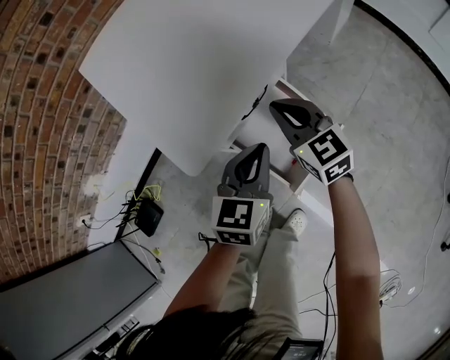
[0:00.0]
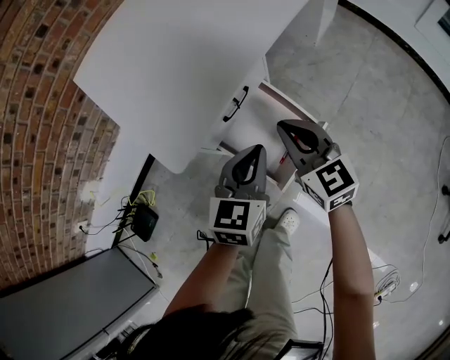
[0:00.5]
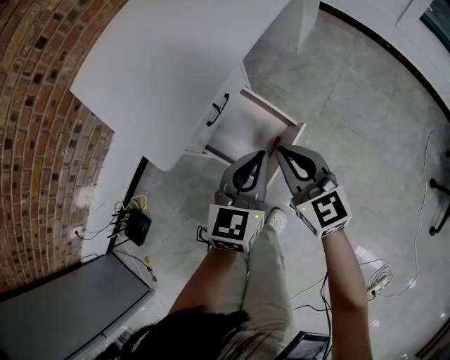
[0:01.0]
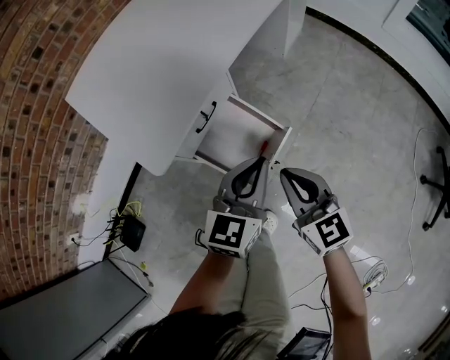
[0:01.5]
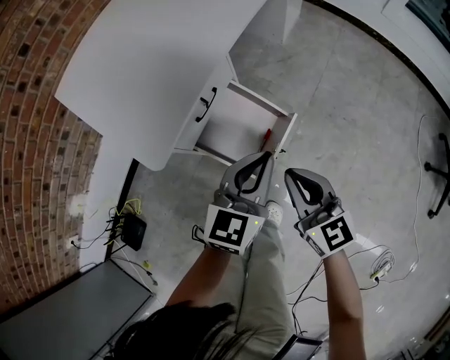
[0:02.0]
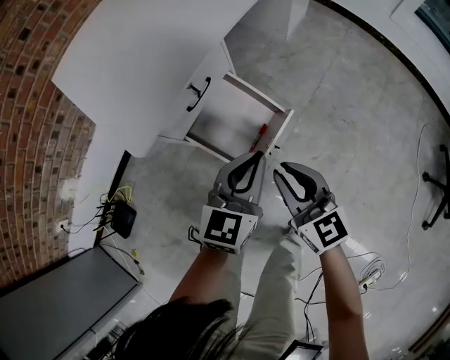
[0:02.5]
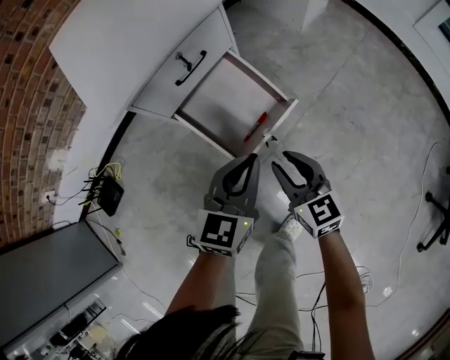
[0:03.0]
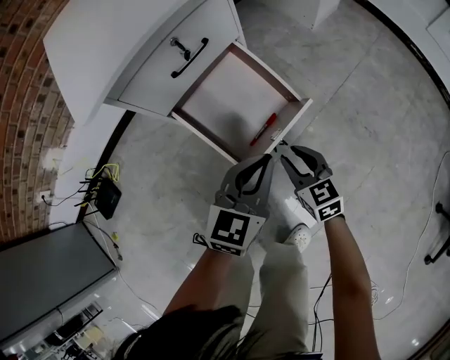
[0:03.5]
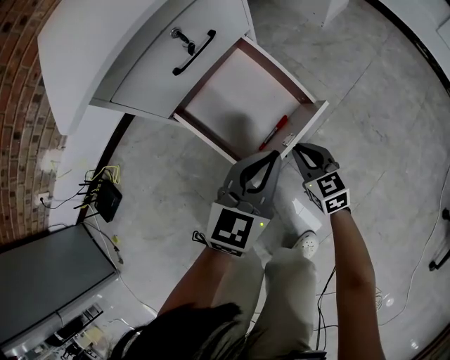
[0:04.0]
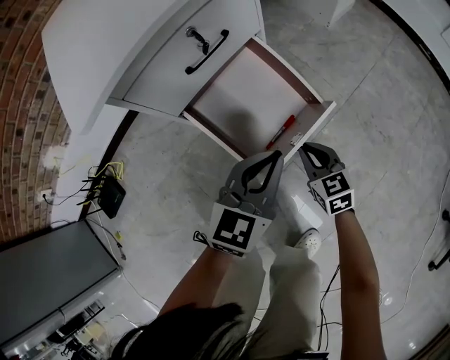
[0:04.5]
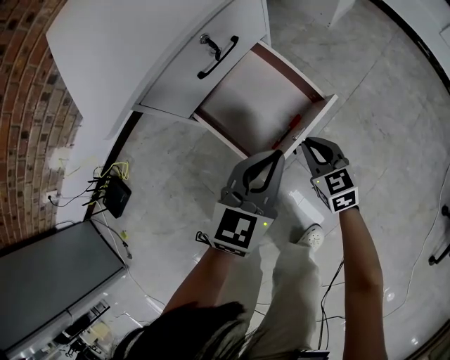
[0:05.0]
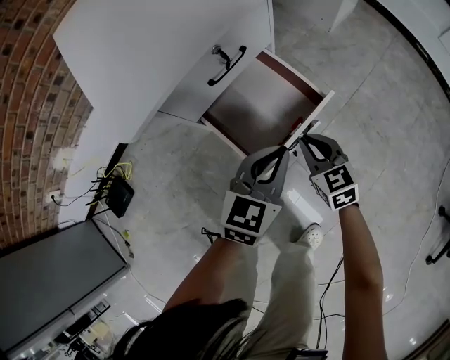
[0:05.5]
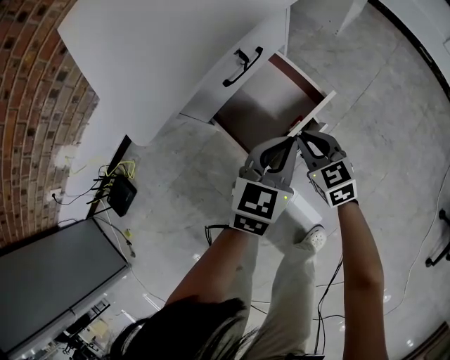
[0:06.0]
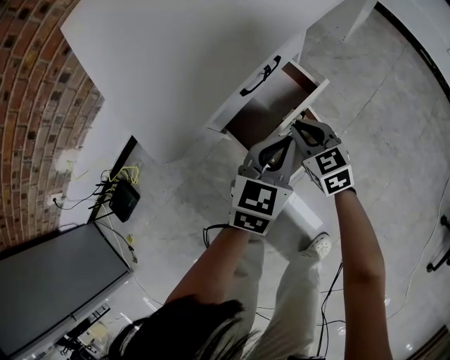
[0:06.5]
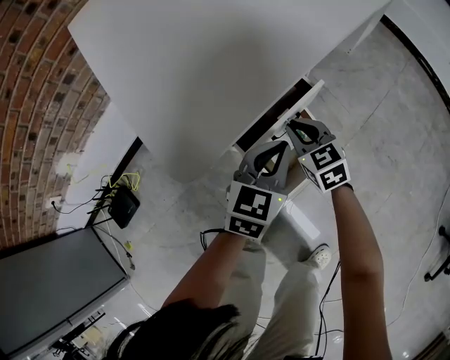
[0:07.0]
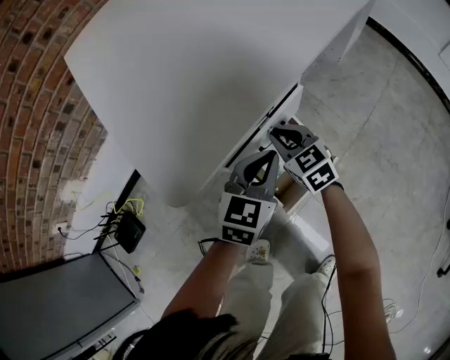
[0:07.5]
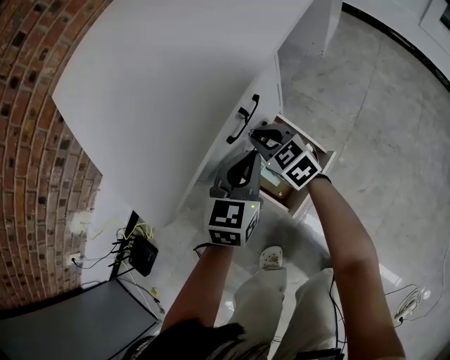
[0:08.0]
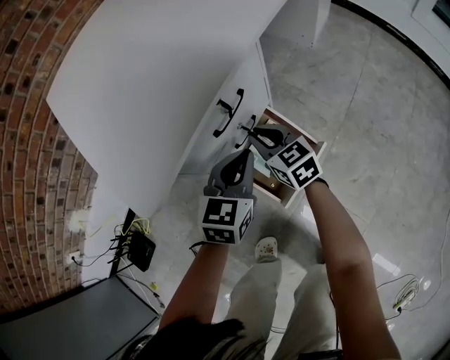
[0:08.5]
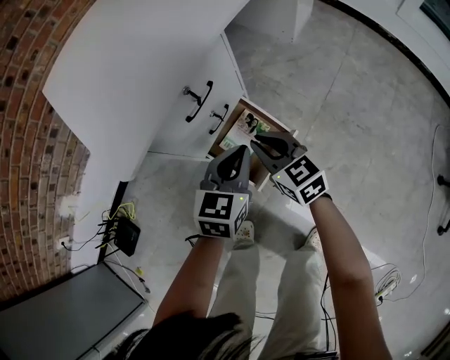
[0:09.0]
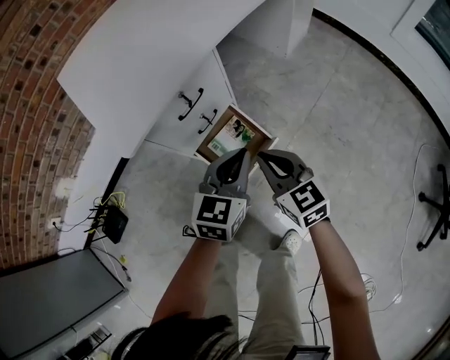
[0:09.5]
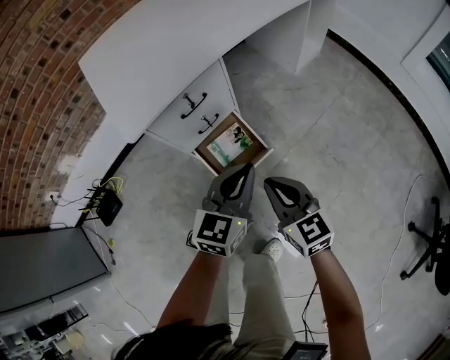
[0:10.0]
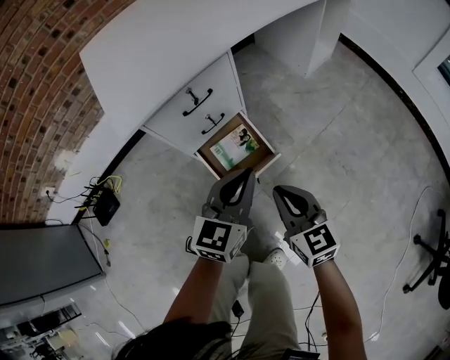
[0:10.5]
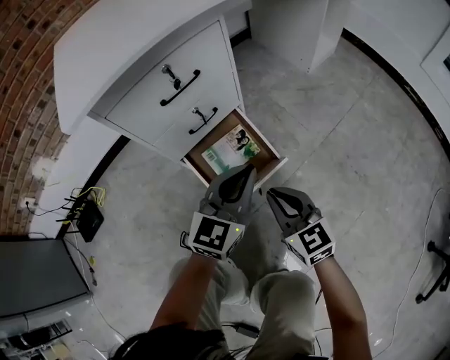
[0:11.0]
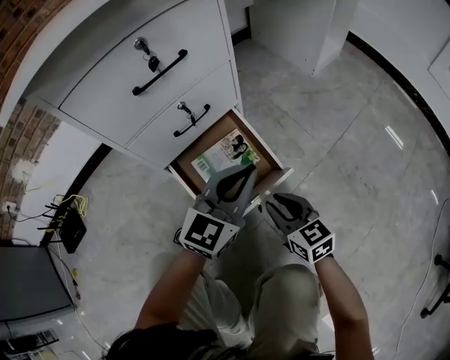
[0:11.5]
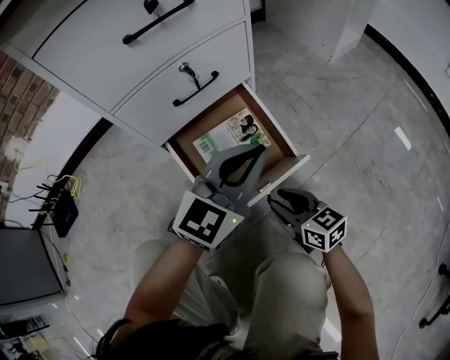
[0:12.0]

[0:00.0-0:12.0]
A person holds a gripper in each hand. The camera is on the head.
0:00.0 to 0:02.0: The right gripper moves backward and to the right, about 25 cm; the left gripper is displaced to the right, backward and upward by some 15 cm, and swivels about 20 degrees.
0:02.0 to 0:04.0: The left gripper shifts roughly 20 cm downward; the right gripper heads downward, covering some 35 cm, and turns by approximately 30 degrees.
0:04.0 to 0:06.0: The right gripper moves upward and to the left, approximately 10 cm; the left gripper moves about 5 cm.
0:06.0 to 0:08.0: The two grippers go about 15 cm forward and to the left.
0:08.0 to 0:10.0: The right gripper shifts some 40 cm backward, upward and to the right, while the left gripper moves upward, to the right and backward, approximately 30 cm.
0:10.0 to 0:12.0: The grippers both shift downward by roughly 40 cm. The right gripper opens up.

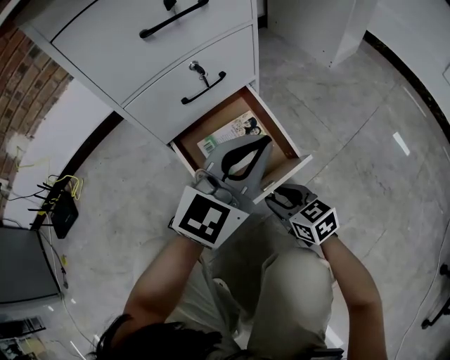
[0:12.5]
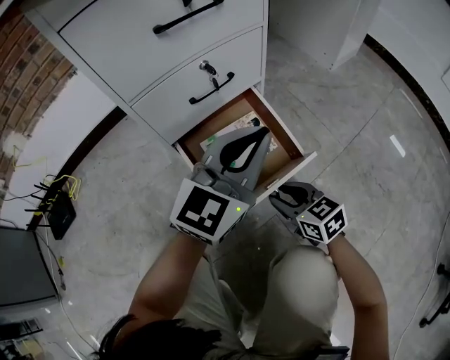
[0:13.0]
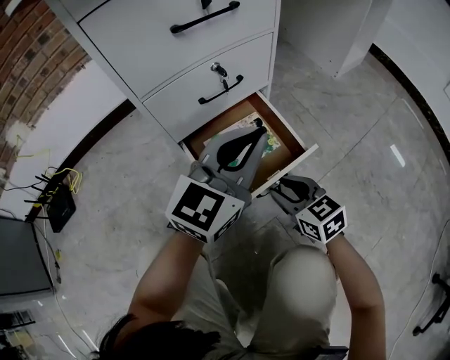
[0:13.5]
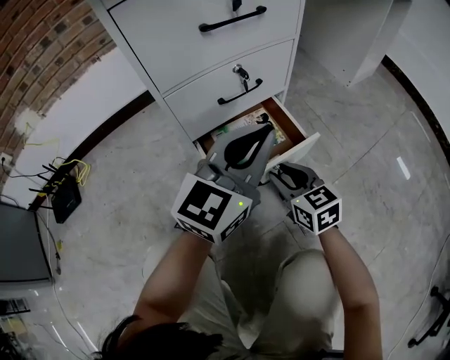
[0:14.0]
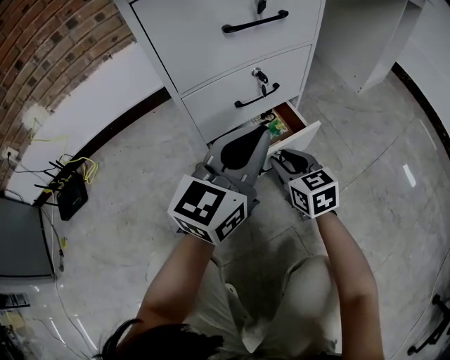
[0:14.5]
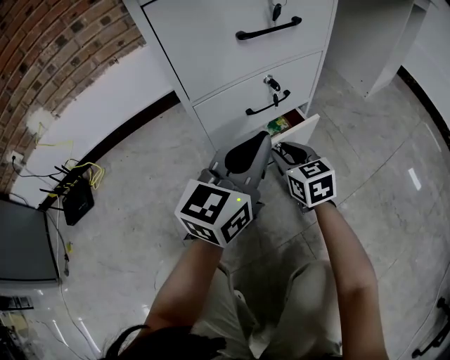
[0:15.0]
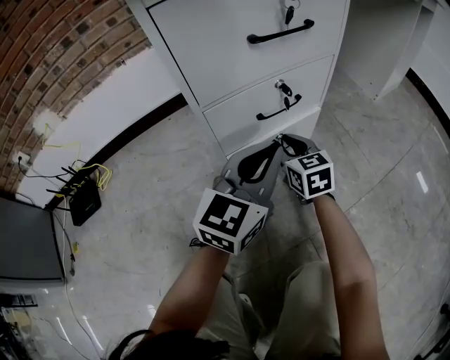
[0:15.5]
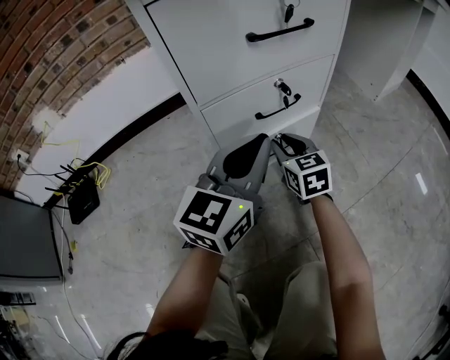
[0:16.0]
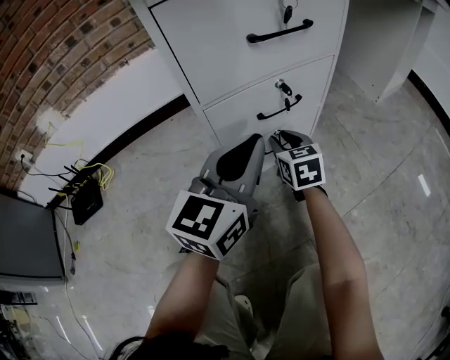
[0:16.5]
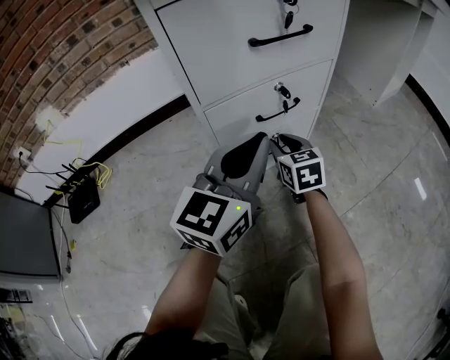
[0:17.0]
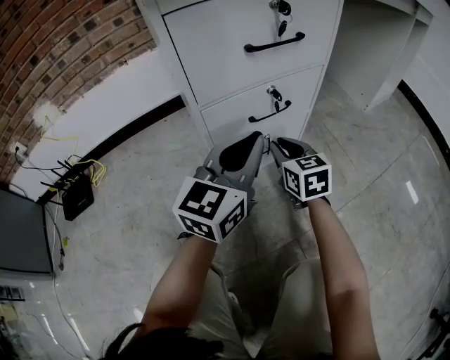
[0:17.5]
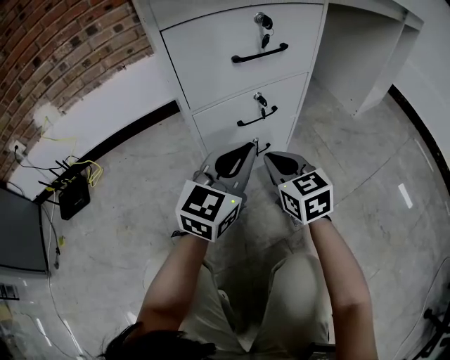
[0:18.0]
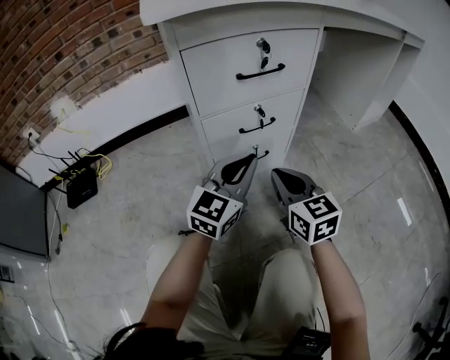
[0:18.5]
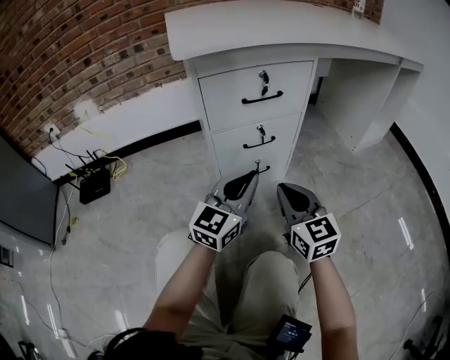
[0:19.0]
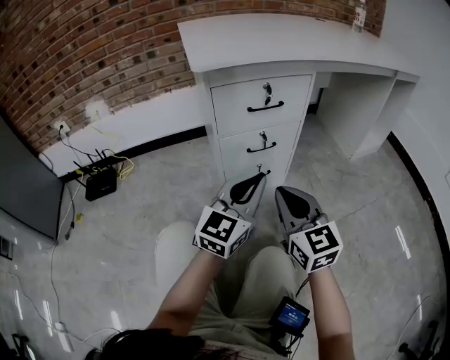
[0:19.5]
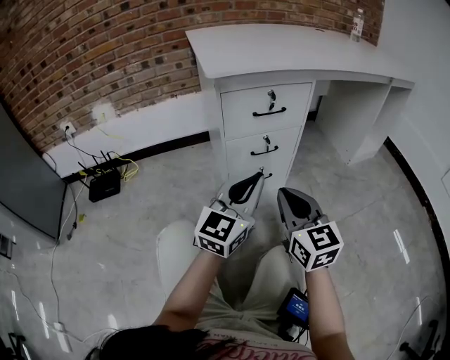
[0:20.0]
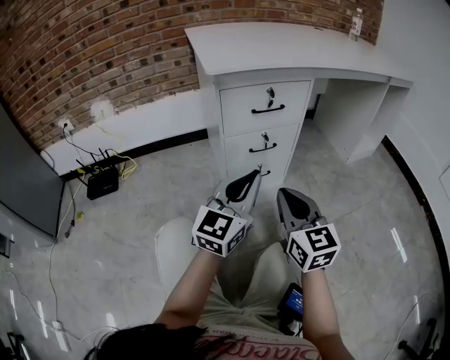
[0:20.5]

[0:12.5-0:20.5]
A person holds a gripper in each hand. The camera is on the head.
0:12.5 to 0:14.5: The left gripper moves to the left, approximately 10 cm, while the right gripper travels forward, upward and to the left by about 15 cm.
0:14.5 to 0:16.5: The right gripper is displaced forward and to the left by some 10 cm, while the left gripper goes some 5 cm to the left.
0:16.5 to 0:18.5: The right gripper moves backward and upward, some 20 cm, and closes up. Meanwhile the left gripper ends up about 5 cm from where it was.
0:18.5 to 0:20.5: Both grippers travel together upward and backward, roughly 20 cm.

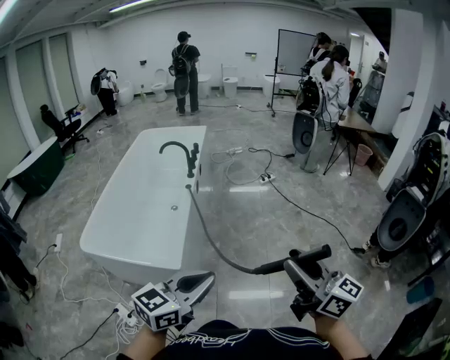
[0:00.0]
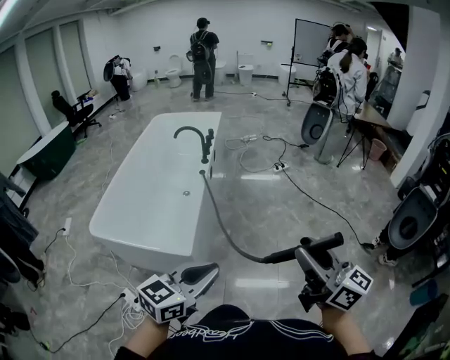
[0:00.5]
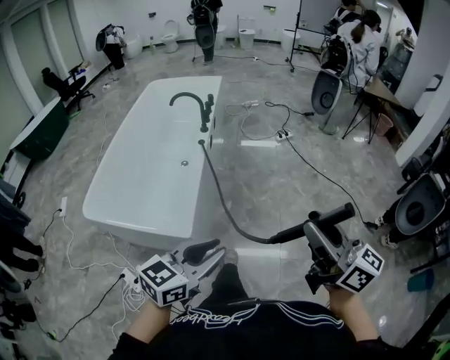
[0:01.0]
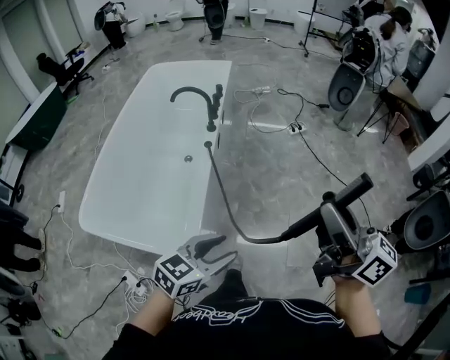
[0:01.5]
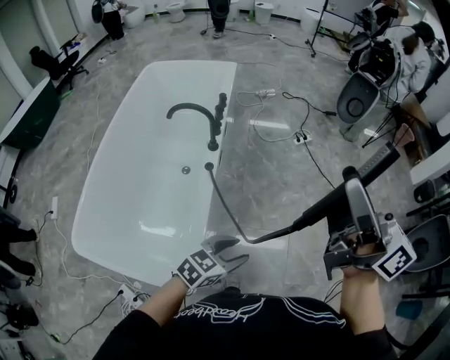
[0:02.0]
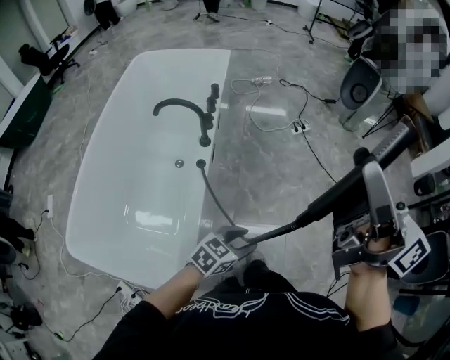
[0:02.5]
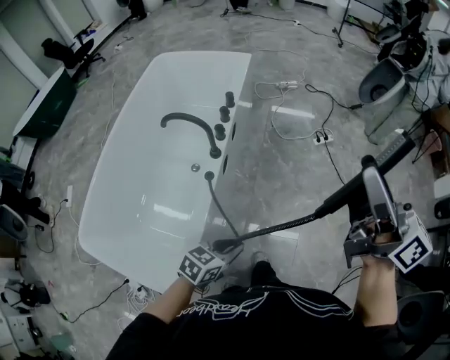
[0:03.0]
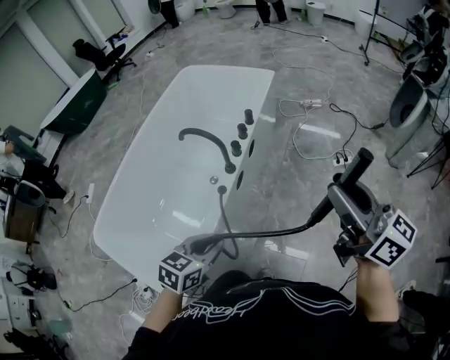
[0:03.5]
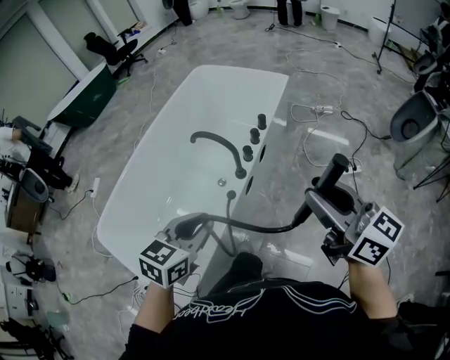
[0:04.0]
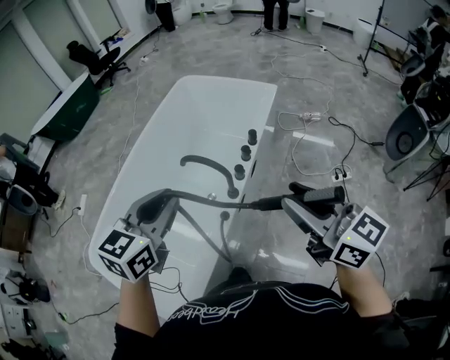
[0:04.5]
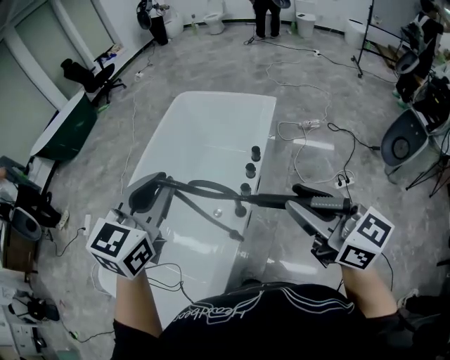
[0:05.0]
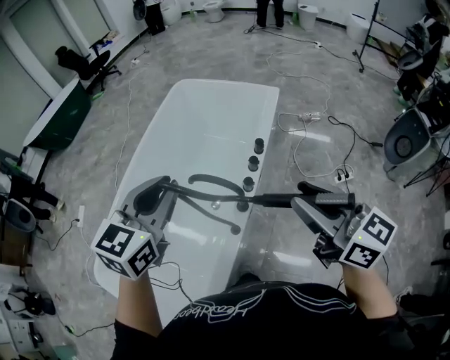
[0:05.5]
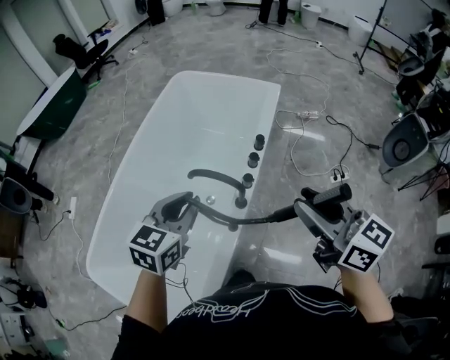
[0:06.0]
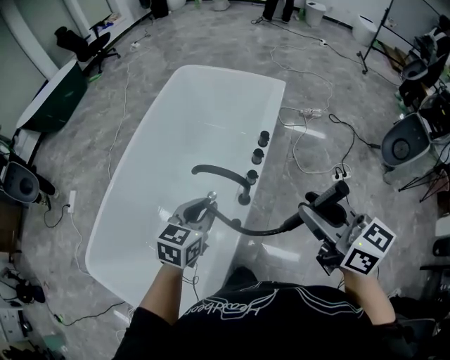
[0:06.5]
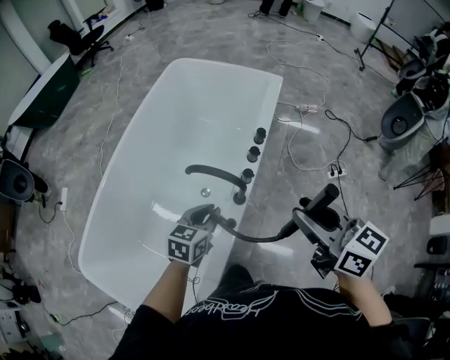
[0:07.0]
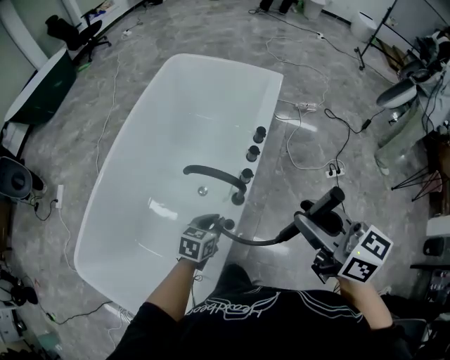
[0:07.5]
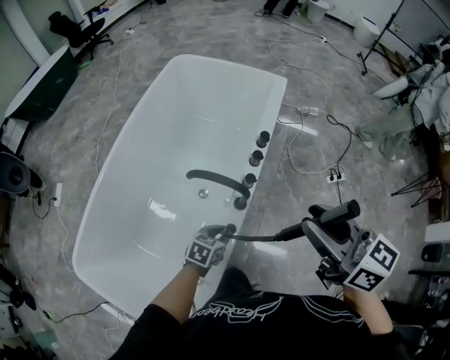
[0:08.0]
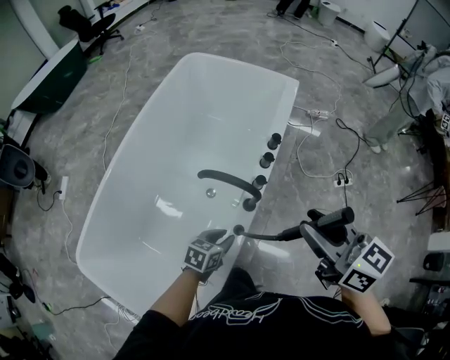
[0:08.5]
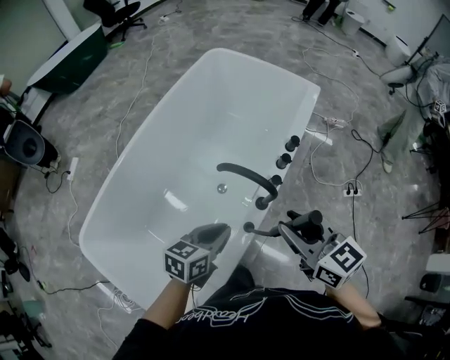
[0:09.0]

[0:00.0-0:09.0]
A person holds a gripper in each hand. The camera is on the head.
0:00.0 to 0:02.0: The right gripper shifts some 40 cm forward; the left gripper travels forward and downward by about 40 cm, rotates roughly 30 degrees, and opens its fingers.
0:02.0 to 0:04.5: The left gripper moves some 40 cm, turns by roughly 50 degrees, and closes. The right gripper shifts by approximately 30 cm, and swivels some 40 degrees.
0:04.5 to 0:07.0: The right gripper shifts roughly 10 cm forward and downward. Meanwhile the left gripper is displaced downward by approximately 25 cm, and changes its angle by approximately 20 degrees.
0:07.0 to 0:09.0: The right gripper heads to the left and downward, covering some 10 cm, while the left gripper shifts roughly 5 cm backward, and goes downward and returns, about 15 cm each way.
